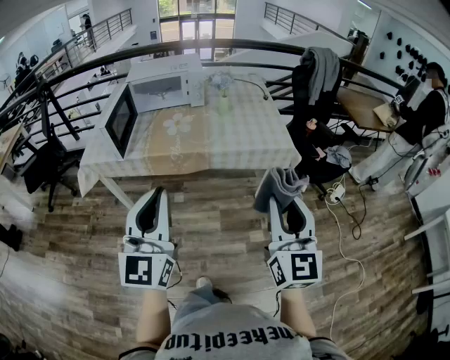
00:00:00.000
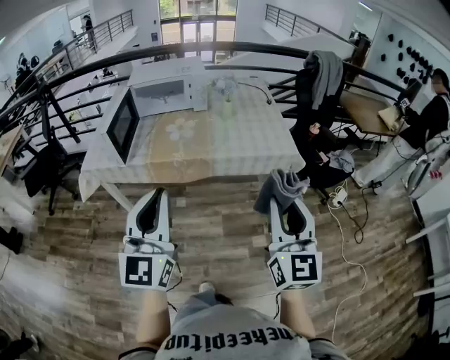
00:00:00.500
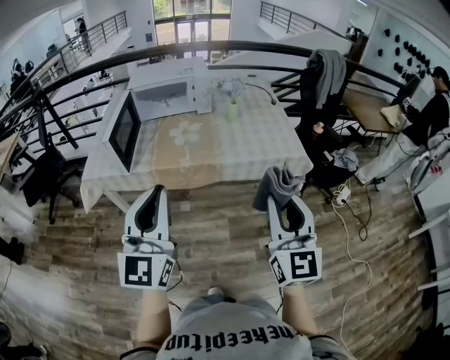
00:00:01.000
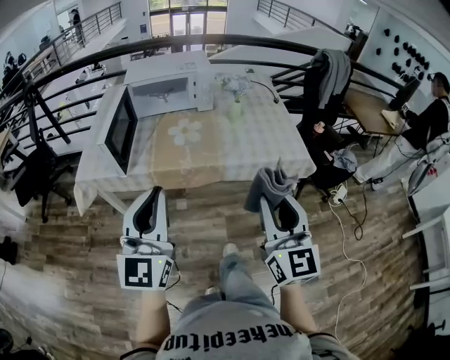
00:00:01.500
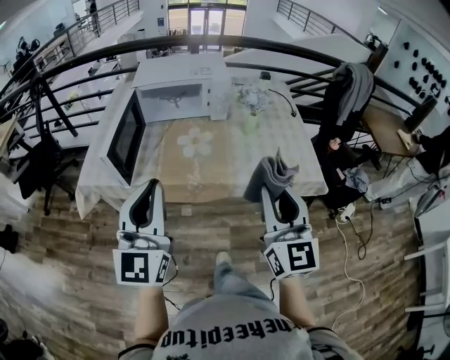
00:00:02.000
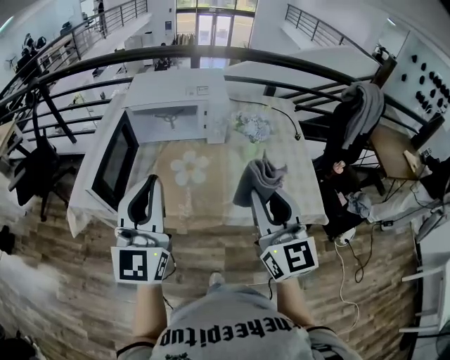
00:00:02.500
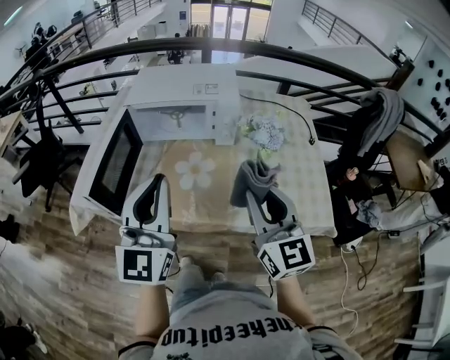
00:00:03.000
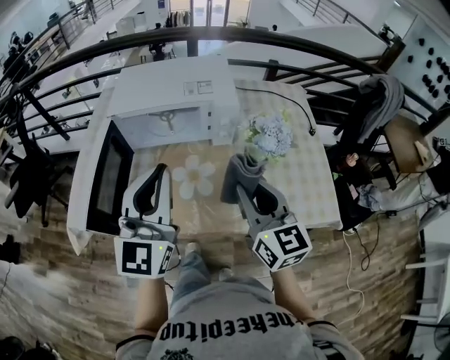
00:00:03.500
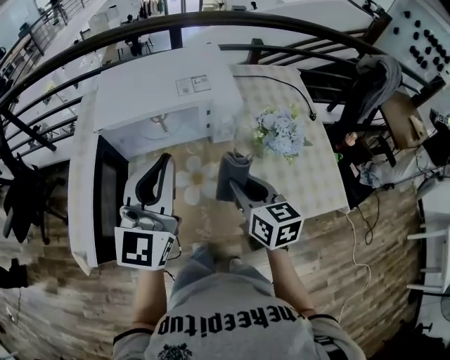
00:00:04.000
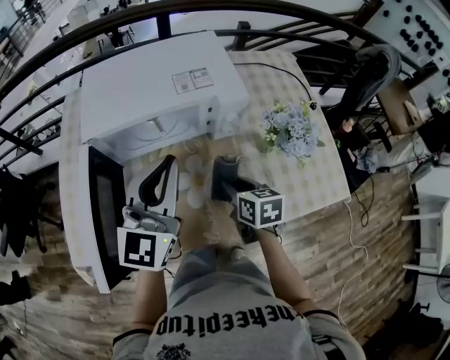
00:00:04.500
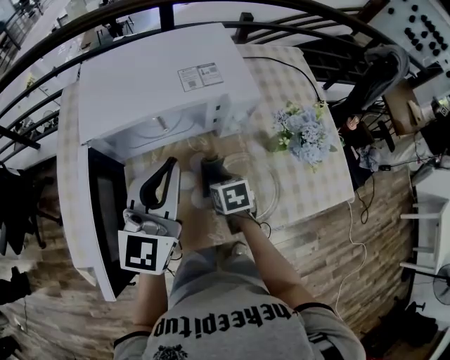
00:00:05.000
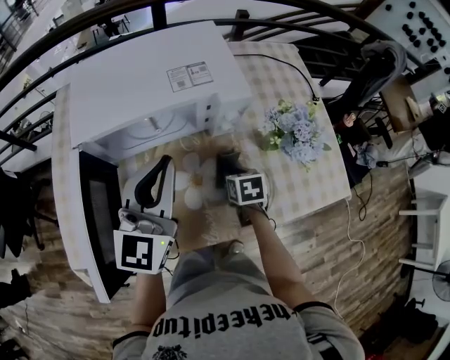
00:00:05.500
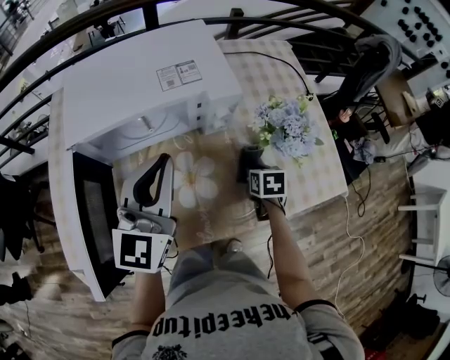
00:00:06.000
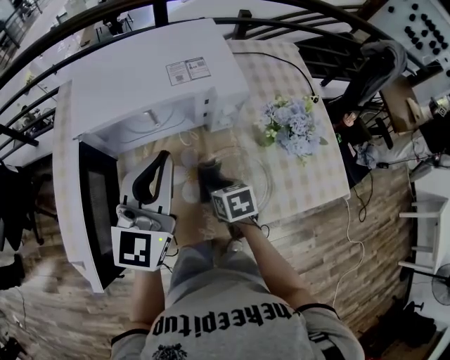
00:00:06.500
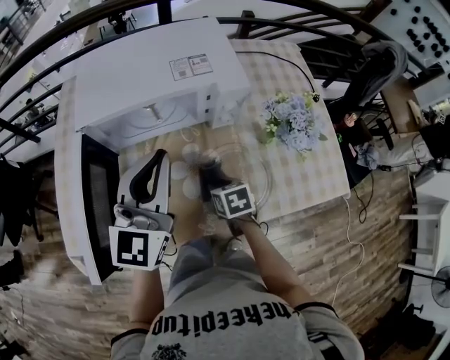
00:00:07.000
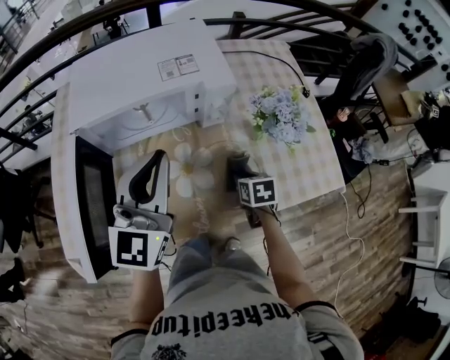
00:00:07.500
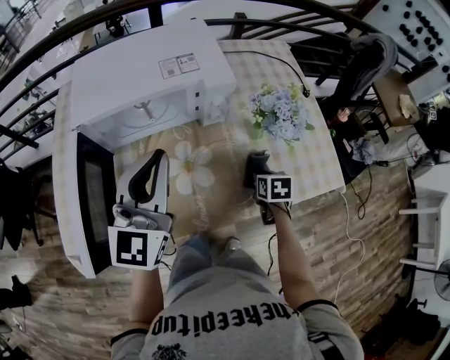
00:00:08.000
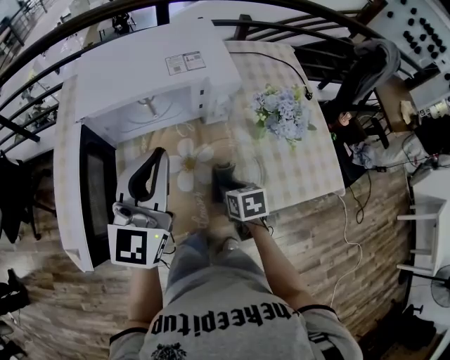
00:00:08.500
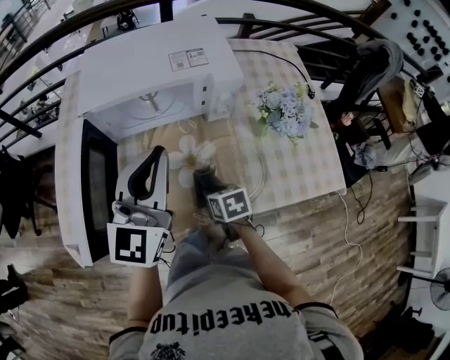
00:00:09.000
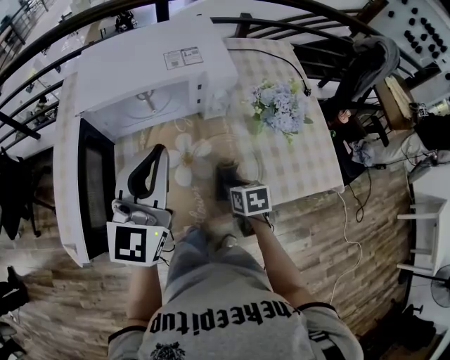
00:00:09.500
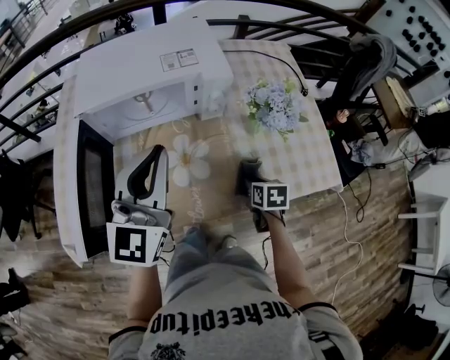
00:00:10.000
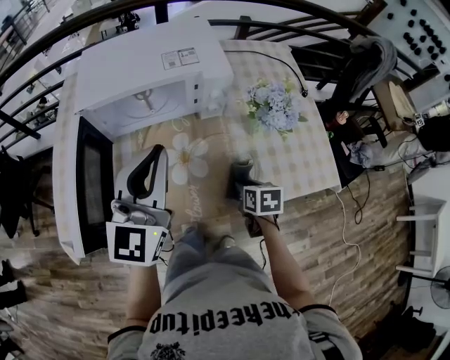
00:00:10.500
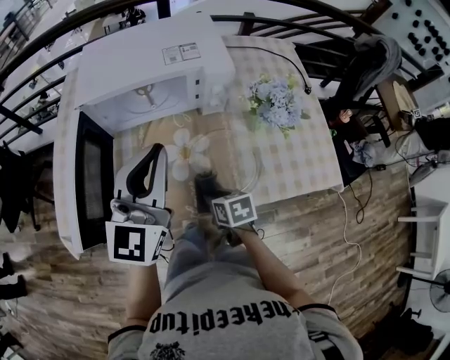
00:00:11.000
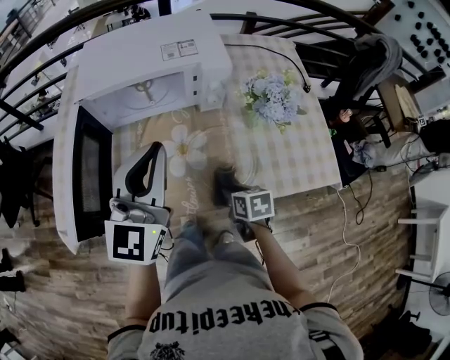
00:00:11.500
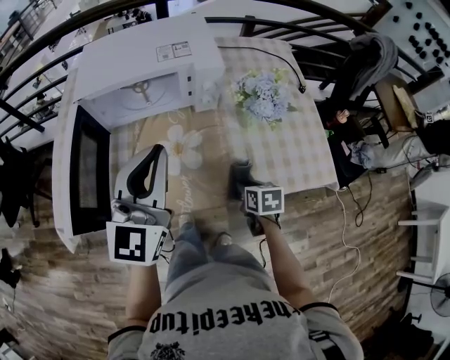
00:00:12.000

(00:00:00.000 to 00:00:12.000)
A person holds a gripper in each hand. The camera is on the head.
00:00:00.000 - 00:00:02.000: The two grippers go some 25 cm forward and to the left.
00:00:02.000 - 00:00:04.000: The left gripper travels forward by roughly 35 cm. Meanwhile the right gripper heads forward and downward, covering approximately 40 cm, and swivels roughly 40 degrees.
00:00:04.000 - 00:00:06.000: The right gripper travels downward and to the right by approximately 25 cm, and points its fingers about 40 degrees further downward; the left gripper heads forward and downward, covering about 10 cm.
00:00:06.000 - 00:00:08.000: The right gripper goes approximately 5 cm backward, and reaches approximately 15 cm to the left, then returns.
00:00:08.000 - 00:00:10.000: The right gripper moves some 20 cm to the left and comes back.
00:00:10.000 - 00:00:12.000: The right gripper moves some 15 cm to the left and comes back. The left gripper shifts by about 5 cm.

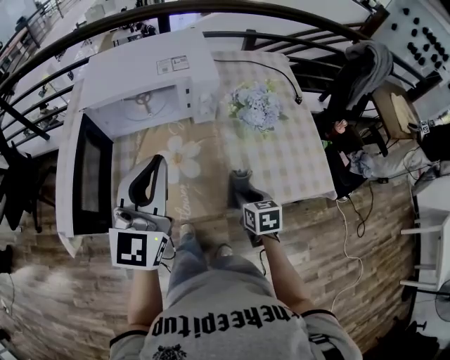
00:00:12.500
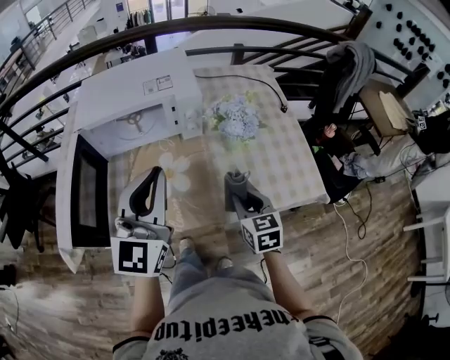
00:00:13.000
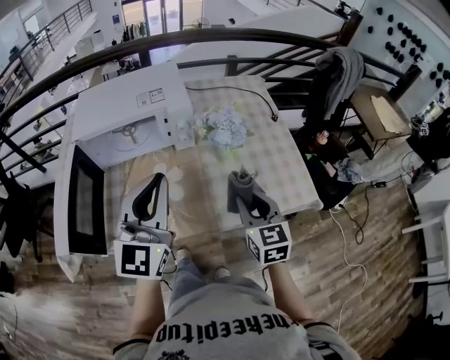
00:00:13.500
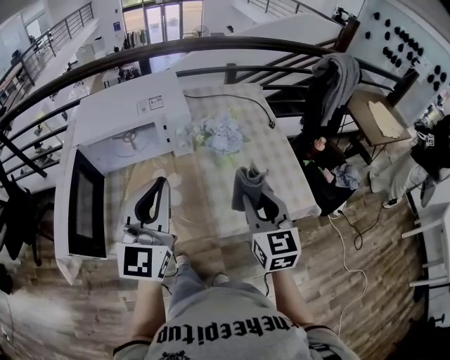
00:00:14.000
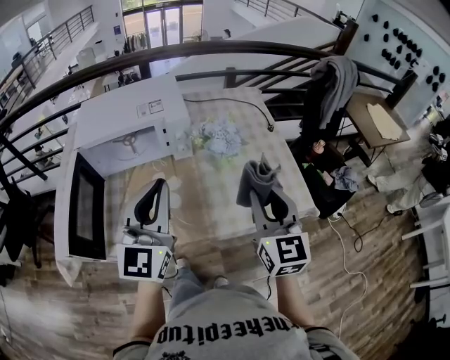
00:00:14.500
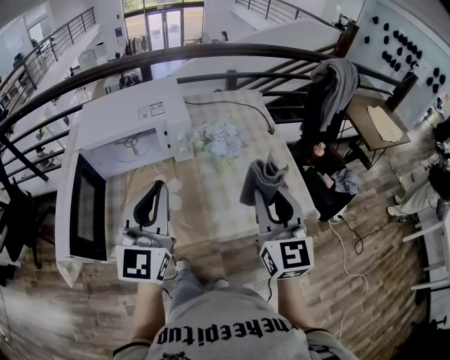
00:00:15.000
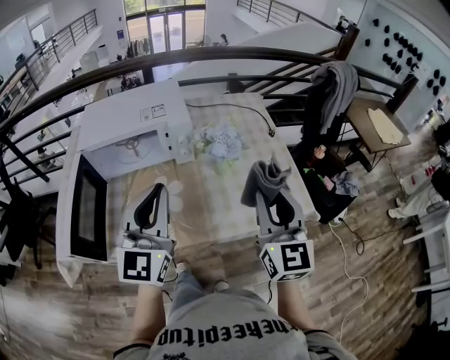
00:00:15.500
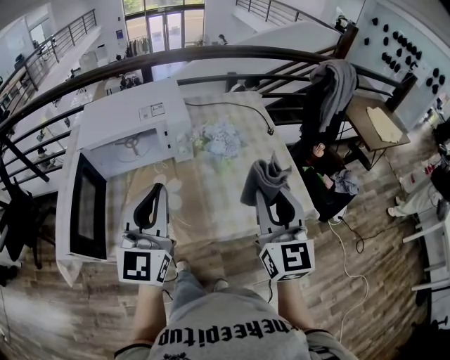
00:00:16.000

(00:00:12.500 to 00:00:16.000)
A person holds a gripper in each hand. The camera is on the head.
00:00:12.500 - 00:00:14.500: The right gripper moves upward, approximately 30 cm, and tips its fingers upward by some 40 degrees; the left gripper moves to the right, about 5 cm.
00:00:14.500 - 00:00:16.000: The grippers stay close to where they were, moving slightly.

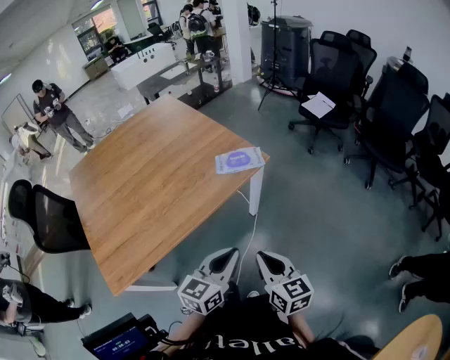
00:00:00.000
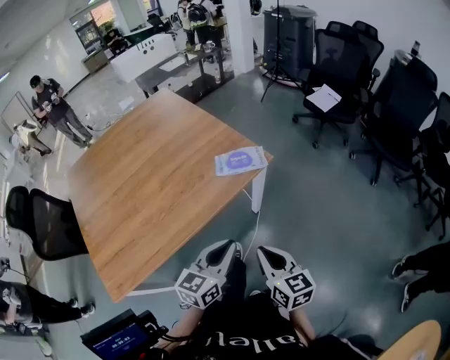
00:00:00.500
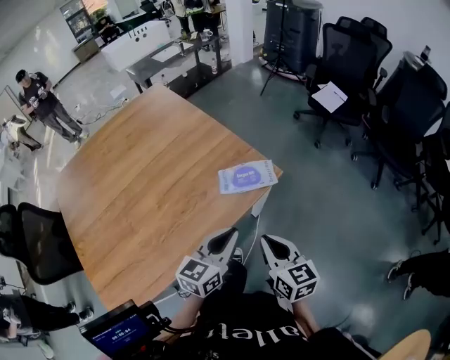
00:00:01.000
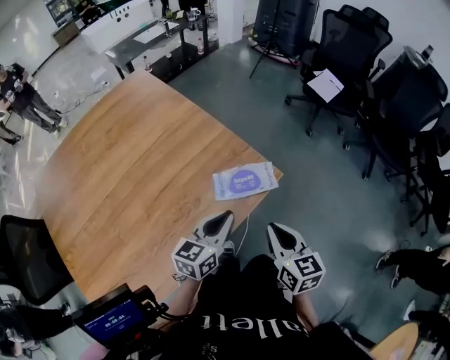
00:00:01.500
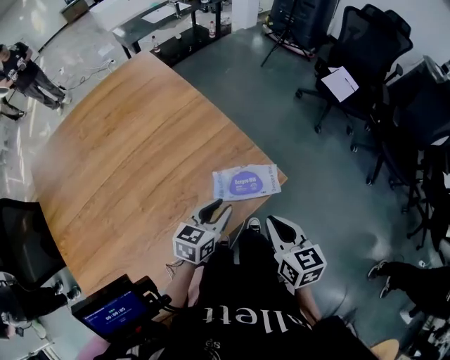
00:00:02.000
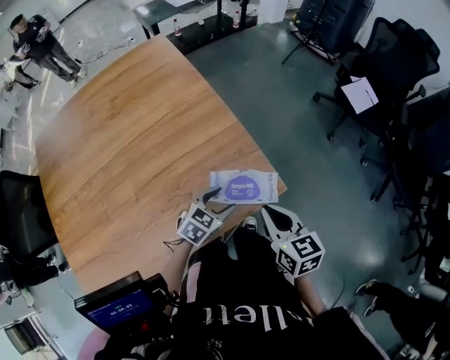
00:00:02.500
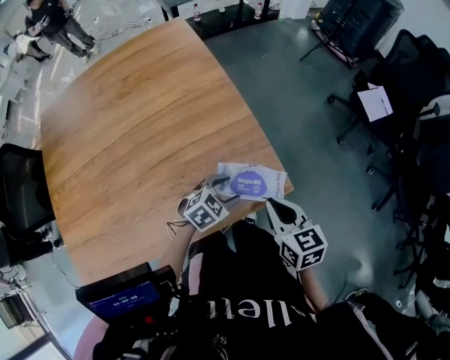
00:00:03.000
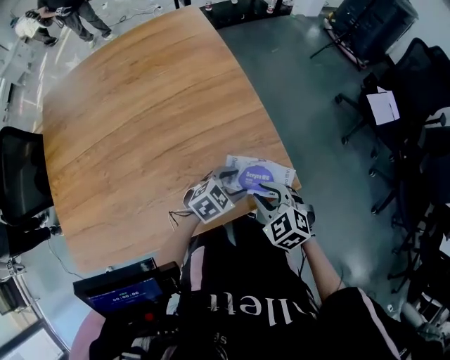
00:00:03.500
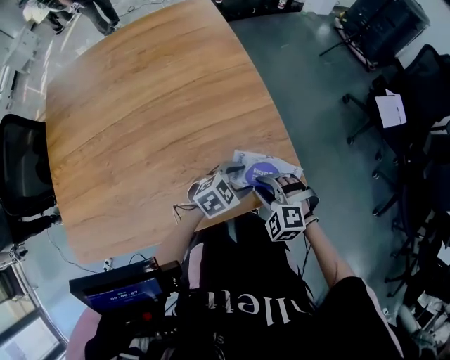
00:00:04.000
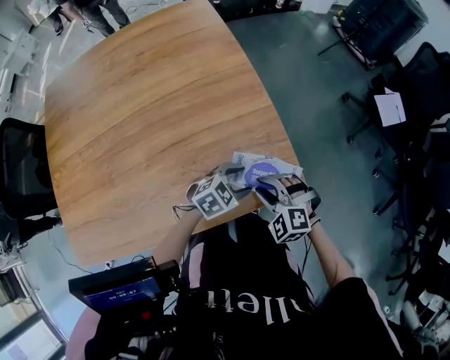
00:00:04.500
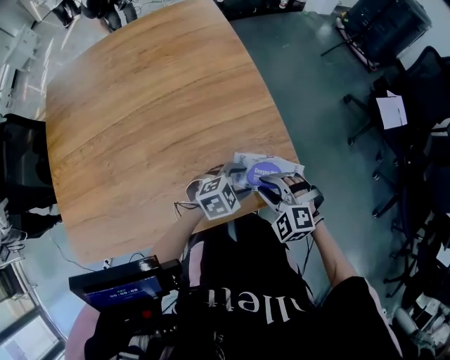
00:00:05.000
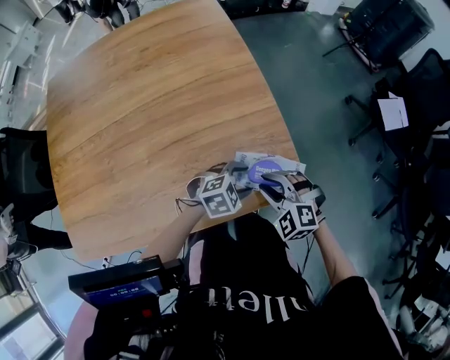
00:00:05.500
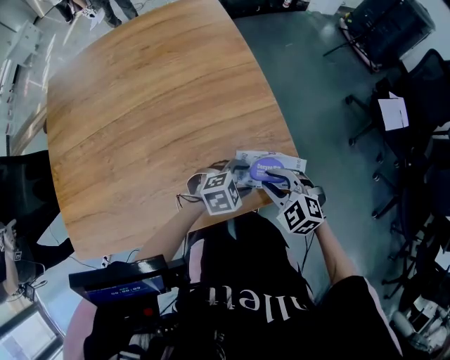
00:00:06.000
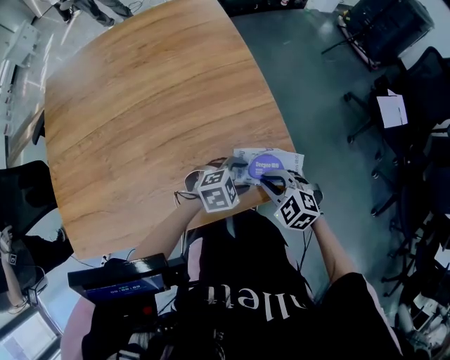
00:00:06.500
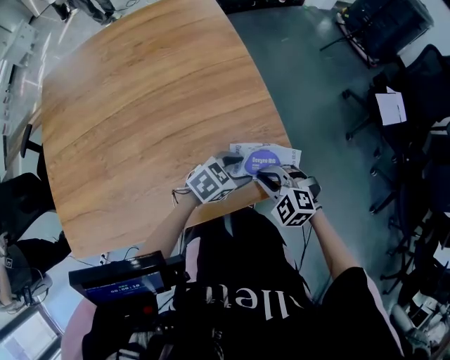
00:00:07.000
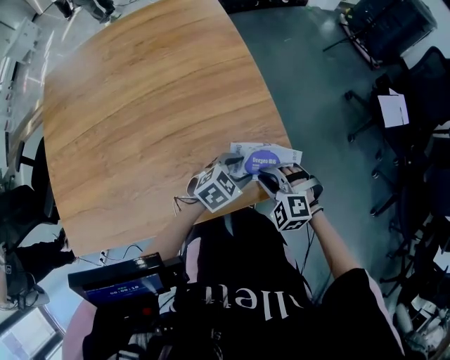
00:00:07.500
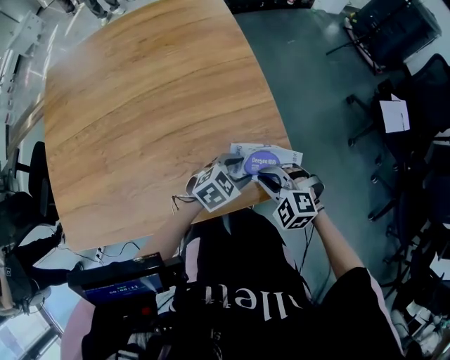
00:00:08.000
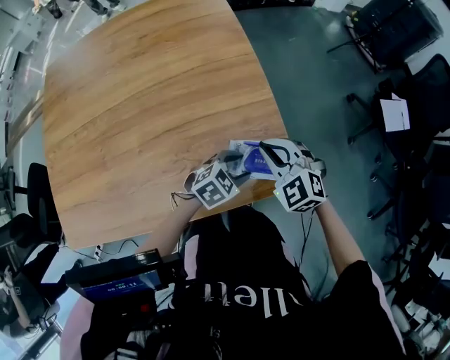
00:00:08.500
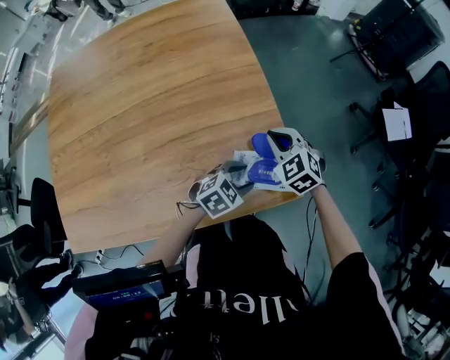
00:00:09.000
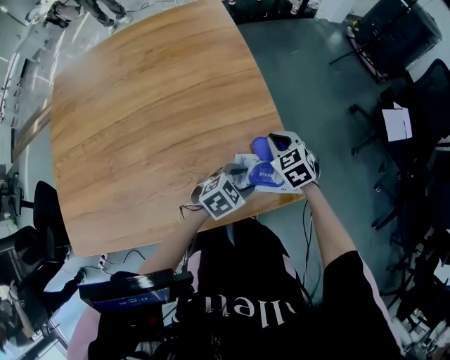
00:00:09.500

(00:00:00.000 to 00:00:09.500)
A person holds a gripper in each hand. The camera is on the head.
00:00:00.000 - 00:00:02.000: Both grippers move forward, approximately 40 cm. The left gripper opens its fingers.
00:00:02.000 - 00:00:04.000: The right gripper shifts roughly 15 cm downward, to the left and forward, rolls counterclockwise, seen from behind, by roughly 80 degrees, and opens, while the left gripper is displaced downward by some 10 cm, changes its angle by roughly 30 degrees, and opens its fingers.
00:00:04.000 - 00:00:05.500: The grippers stay close to where they were, moving slightly.
00:00:07.500 - 00:00:09.500: The right gripper travels forward by roughly 15 cm, and turns by some 40 degrees.

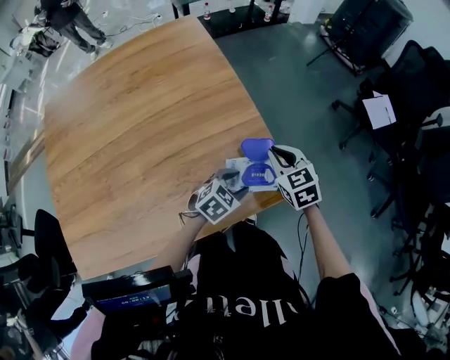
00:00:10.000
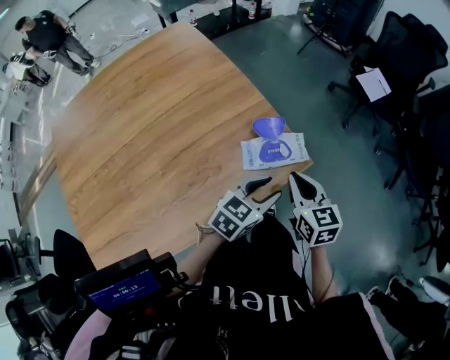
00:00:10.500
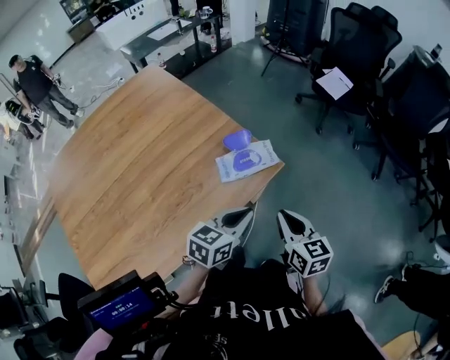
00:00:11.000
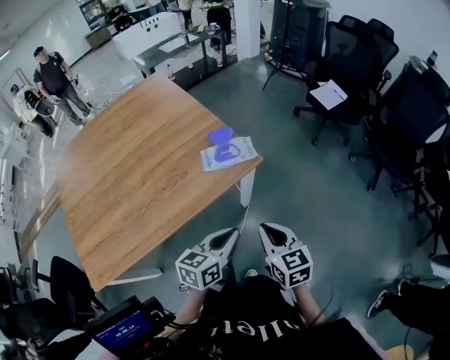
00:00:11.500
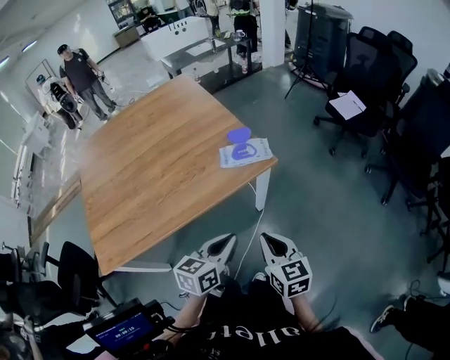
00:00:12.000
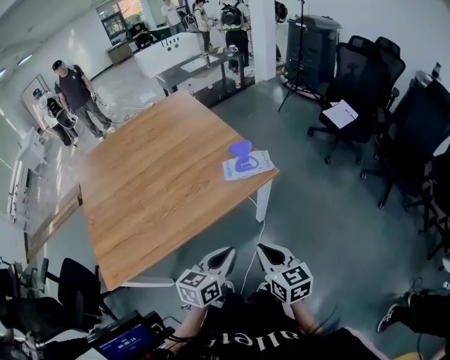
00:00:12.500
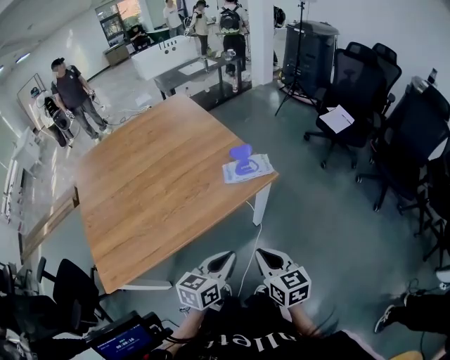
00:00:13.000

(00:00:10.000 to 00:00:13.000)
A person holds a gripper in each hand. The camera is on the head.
00:00:10.000 - 00:00:11.500: The left gripper shifts roughly 35 cm backward, upward and to the right, swivels about 40 degrees, and closes. The right gripper heads backward and to the right, covering approximately 40 cm, and turns by approximately 30 degrees.
00:00:11.500 - 00:00:13.000: Both grippers travel together backward and to the left, roughly 10 cm.
